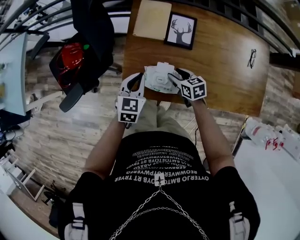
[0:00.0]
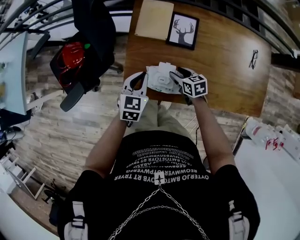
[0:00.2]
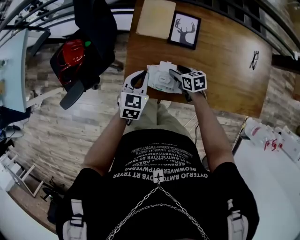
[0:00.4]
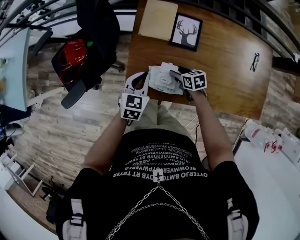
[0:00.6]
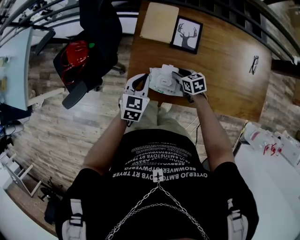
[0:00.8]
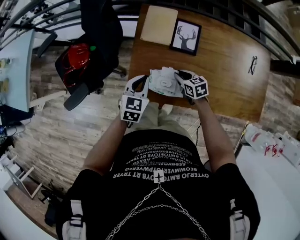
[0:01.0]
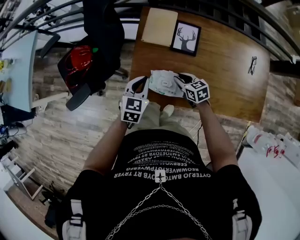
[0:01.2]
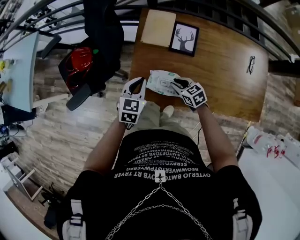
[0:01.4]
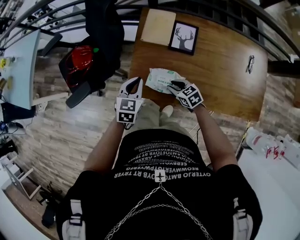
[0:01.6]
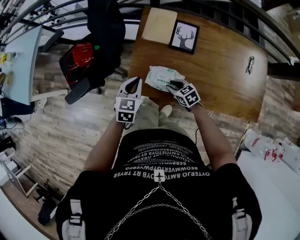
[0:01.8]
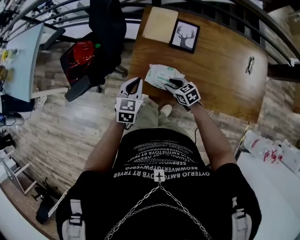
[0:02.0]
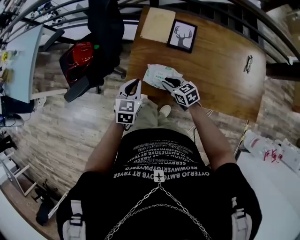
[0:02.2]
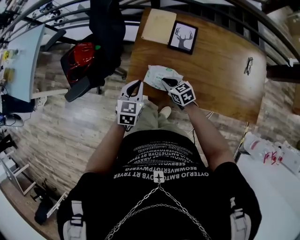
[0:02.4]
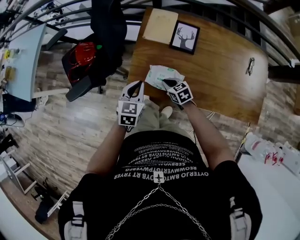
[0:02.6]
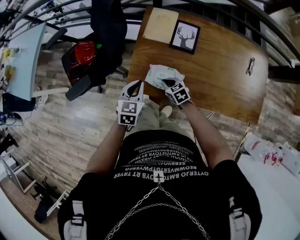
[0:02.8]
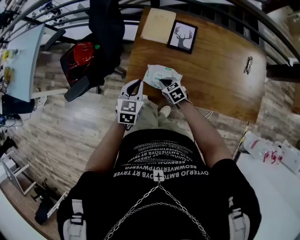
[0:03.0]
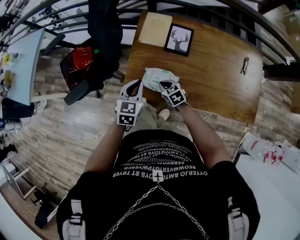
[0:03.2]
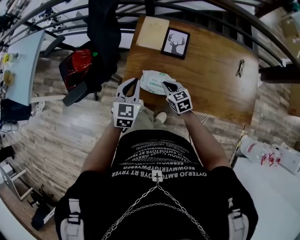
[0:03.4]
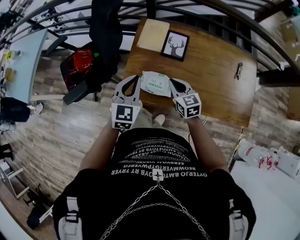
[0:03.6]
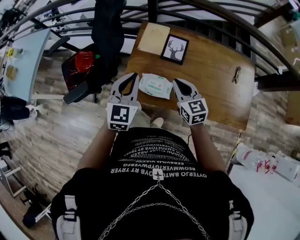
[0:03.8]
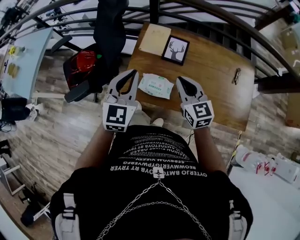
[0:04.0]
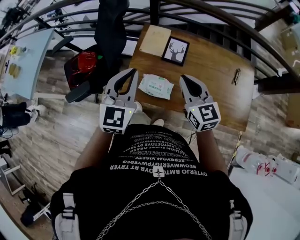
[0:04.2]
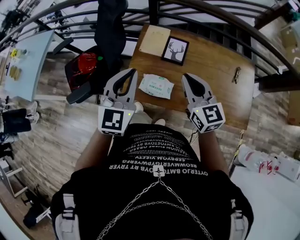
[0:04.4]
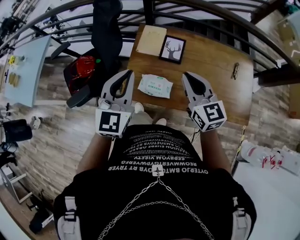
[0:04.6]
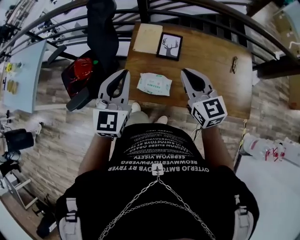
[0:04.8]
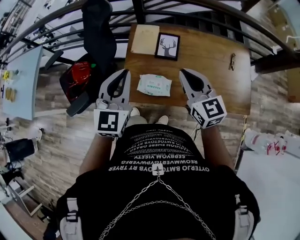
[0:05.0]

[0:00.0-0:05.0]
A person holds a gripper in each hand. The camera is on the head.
0:00.0 to 0:01.6: The right gripper moves some 5 cm, rotates some 20 degrees, and closes its fingers.
0:01.6 to 0:03.4: The grippers both shift upward by roughly 5 cm. The right gripper closes up.
0:03.4 to 0:05.0: The left gripper heads upward, covering about 20 cm. The right gripper moves upward, approximately 30 cm, and rotates about 30 degrees.

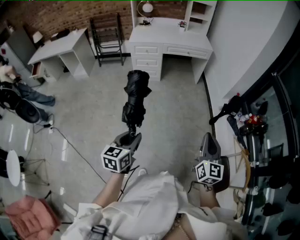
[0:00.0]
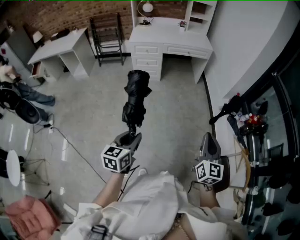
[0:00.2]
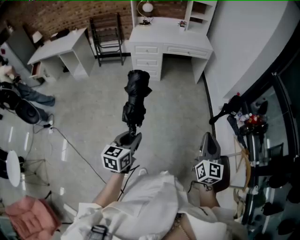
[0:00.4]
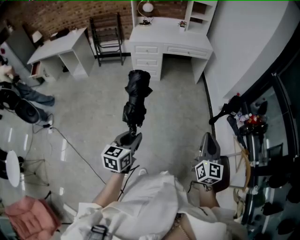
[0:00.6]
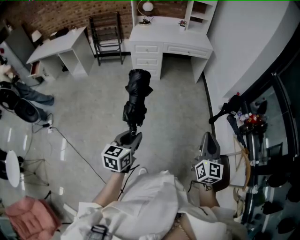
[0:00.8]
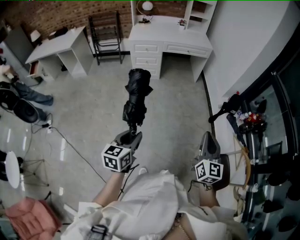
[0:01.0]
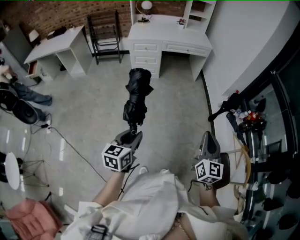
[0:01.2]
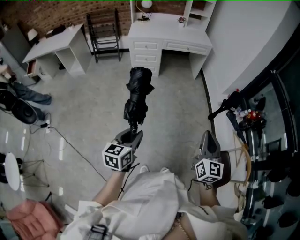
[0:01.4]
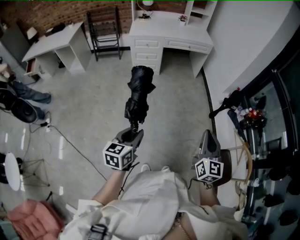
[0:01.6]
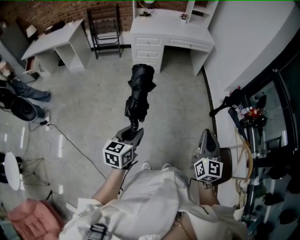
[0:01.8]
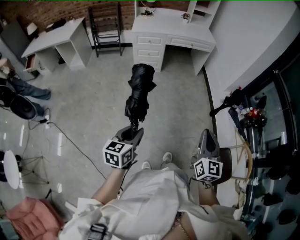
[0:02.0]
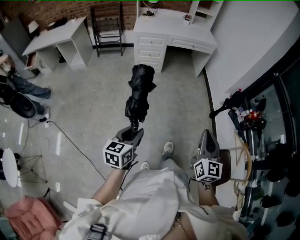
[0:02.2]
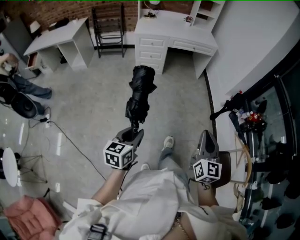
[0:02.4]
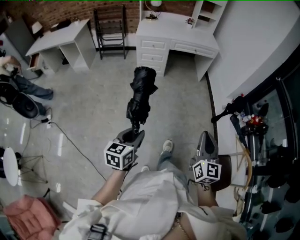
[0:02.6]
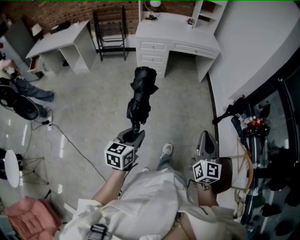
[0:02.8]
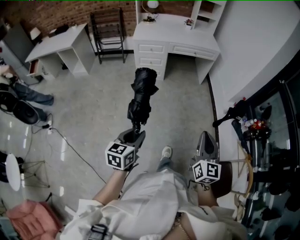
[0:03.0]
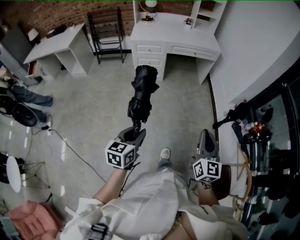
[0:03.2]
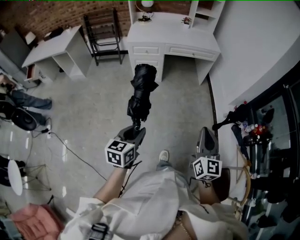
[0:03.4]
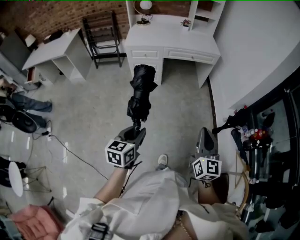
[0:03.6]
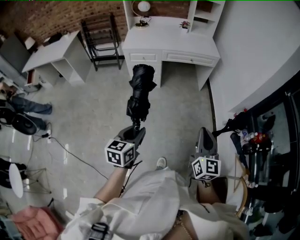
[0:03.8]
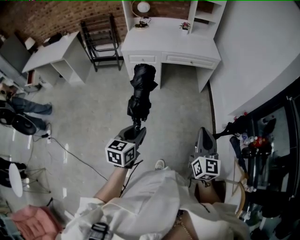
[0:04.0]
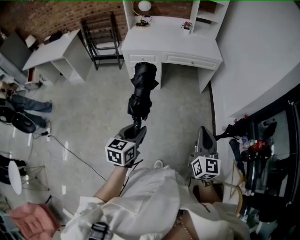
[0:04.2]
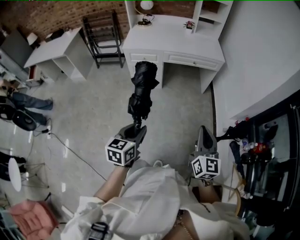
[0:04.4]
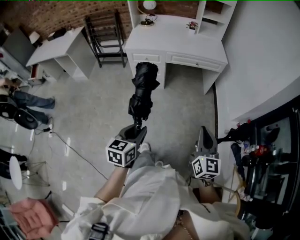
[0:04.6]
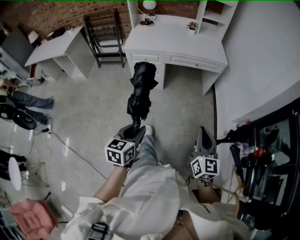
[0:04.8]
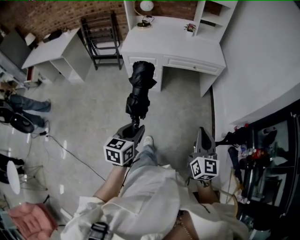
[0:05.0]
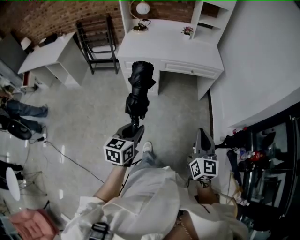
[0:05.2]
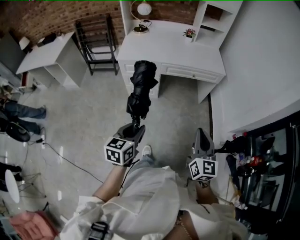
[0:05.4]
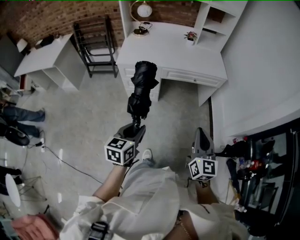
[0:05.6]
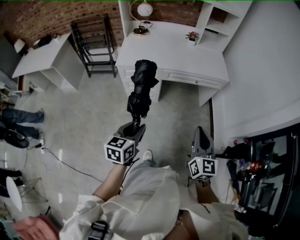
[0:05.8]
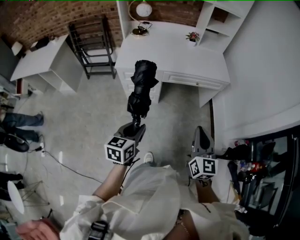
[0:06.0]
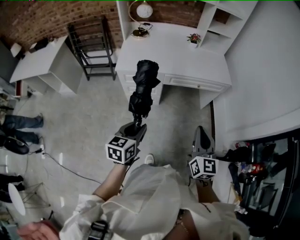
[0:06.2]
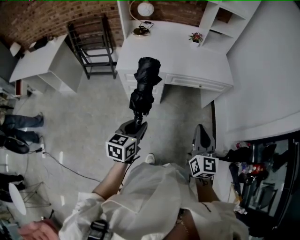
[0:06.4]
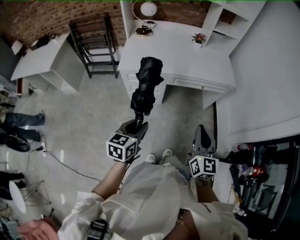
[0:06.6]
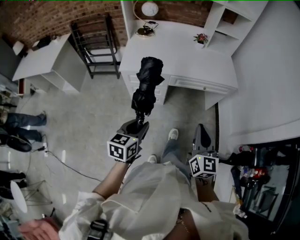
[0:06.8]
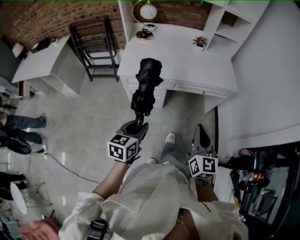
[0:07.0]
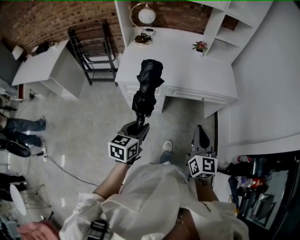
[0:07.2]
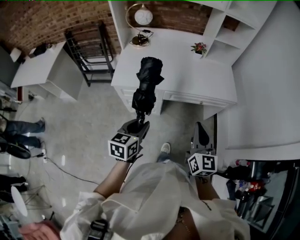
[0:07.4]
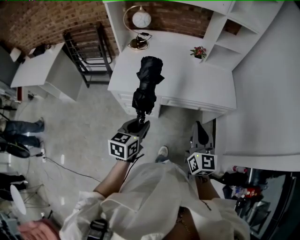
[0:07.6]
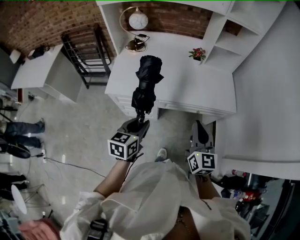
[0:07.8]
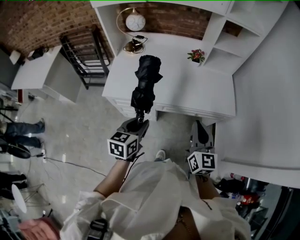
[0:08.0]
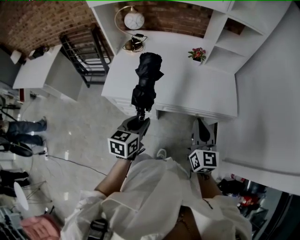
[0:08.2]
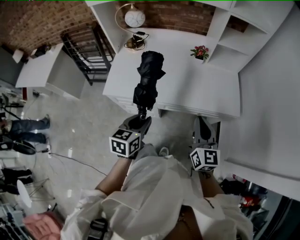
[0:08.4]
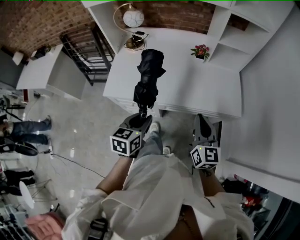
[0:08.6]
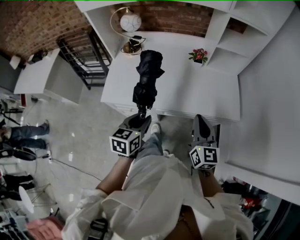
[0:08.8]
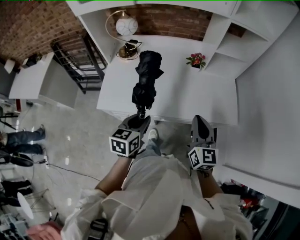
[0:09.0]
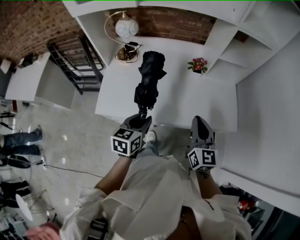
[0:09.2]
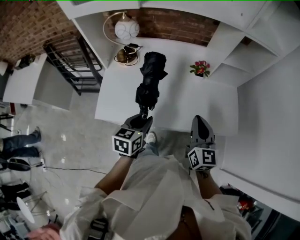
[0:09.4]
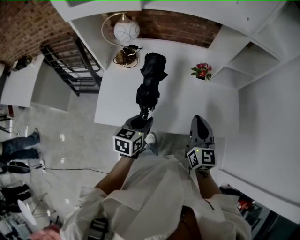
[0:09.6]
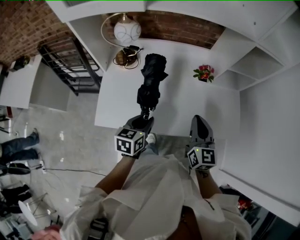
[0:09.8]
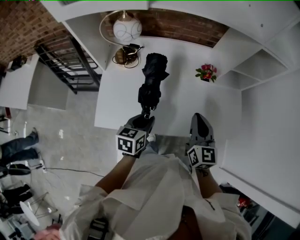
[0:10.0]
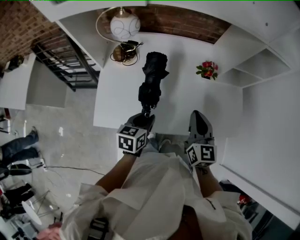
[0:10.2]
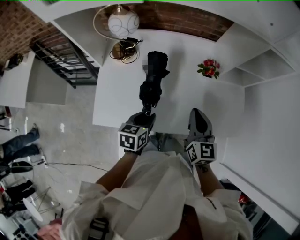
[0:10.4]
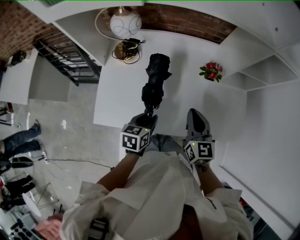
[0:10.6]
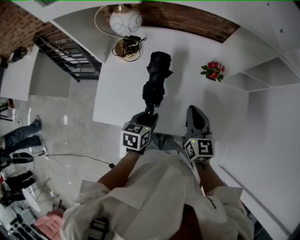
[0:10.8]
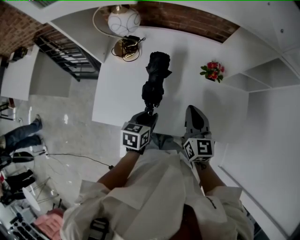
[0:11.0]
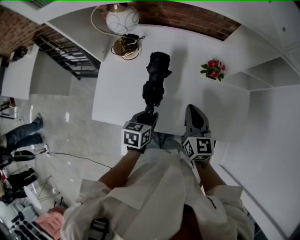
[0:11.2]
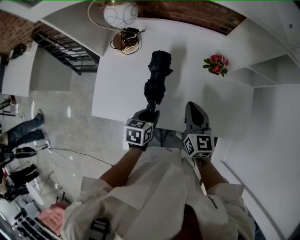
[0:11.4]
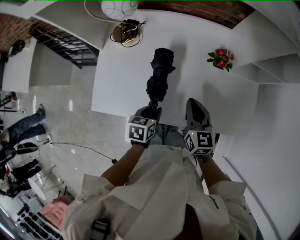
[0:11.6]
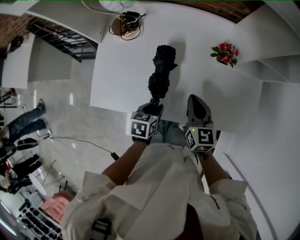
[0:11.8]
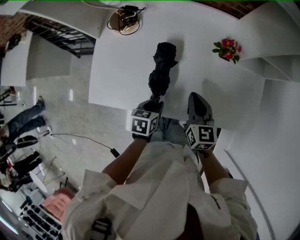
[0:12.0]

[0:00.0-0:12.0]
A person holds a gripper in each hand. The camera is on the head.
0:00.0 to 0:01.6: The two grippers go roughly 5 cm to the left.
0:01.6 to 0:03.0: The two grippers go some 10 cm forward.
0:03.0 to 0:04.4: The grippers both shift forward by about 30 cm.
0:04.4 to 0:06.0: The right gripper moves forward and to the left, roughly 30 cm. The left gripper is displaced forward by some 30 cm.
0:06.0 to 0:07.6: The two grippers go roughly 30 cm forward.
0:07.6 to 0:09.0: The grippers both shift forward by roughly 20 cm.
0:09.0 to 0:10.4: The left gripper heads forward, downward and to the left, covering approximately 20 cm. Meanwhile the right gripper shifts roughly 20 cm forward and to the left.
0:10.4 to 0:12.0: The two grippers go approximately 15 cm downward.

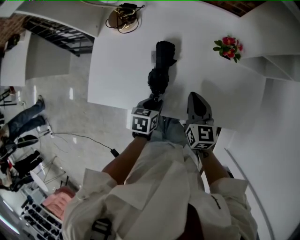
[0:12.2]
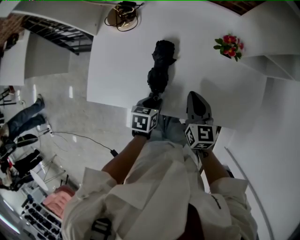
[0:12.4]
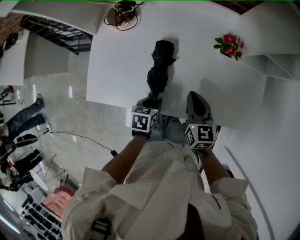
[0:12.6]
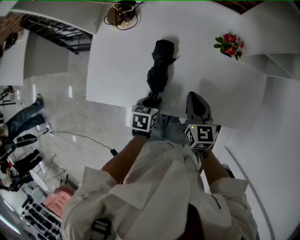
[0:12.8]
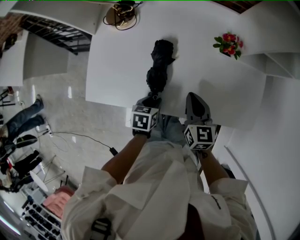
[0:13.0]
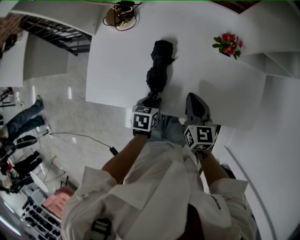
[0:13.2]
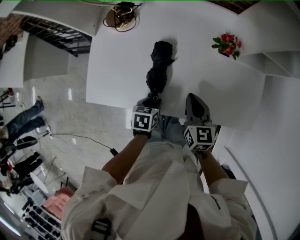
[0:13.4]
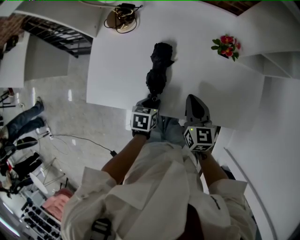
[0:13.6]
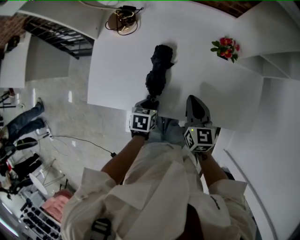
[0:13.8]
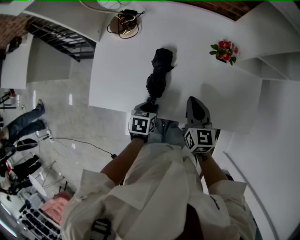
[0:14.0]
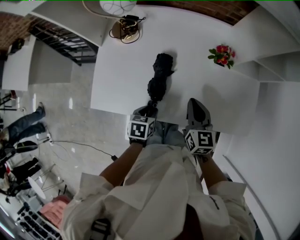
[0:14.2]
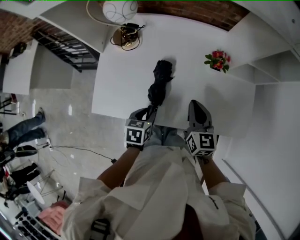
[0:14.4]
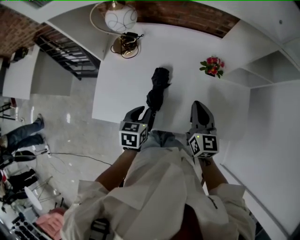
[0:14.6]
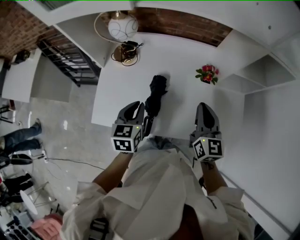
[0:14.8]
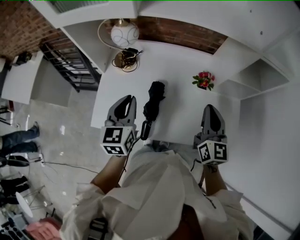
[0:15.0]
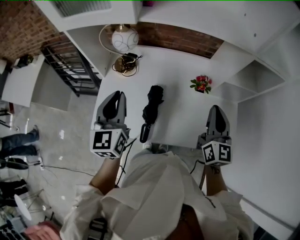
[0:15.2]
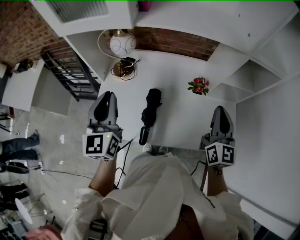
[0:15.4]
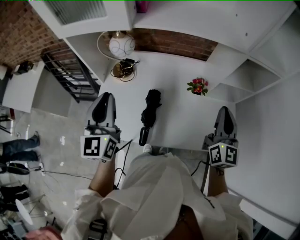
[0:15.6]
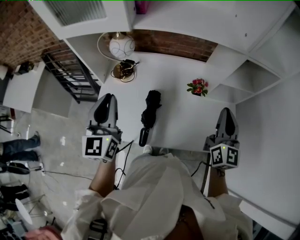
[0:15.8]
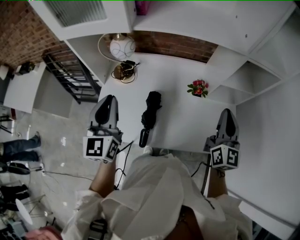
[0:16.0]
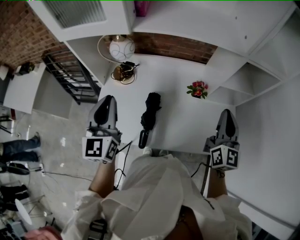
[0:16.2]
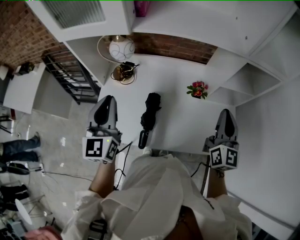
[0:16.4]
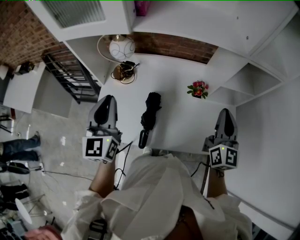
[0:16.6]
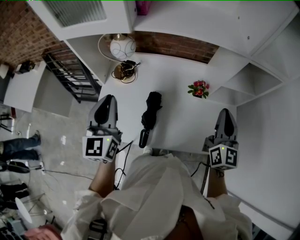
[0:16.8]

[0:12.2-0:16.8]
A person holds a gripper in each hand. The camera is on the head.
0:12.2 to 0:13.8: The grippers stay close to where they were, moving slightly.
0:13.8 to 0:15.2: The right gripper moves upward, about 25 cm, and turns by about 30 degrees. Meanwhile the left gripper travels upward by roughly 40 cm, and tilts its fingers roughly 50 degrees upward.
0:15.2 to 0:16.8: The right gripper changes place by some 5 cm.

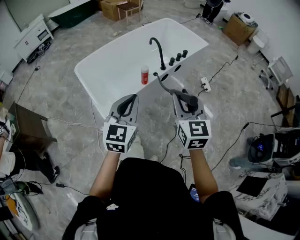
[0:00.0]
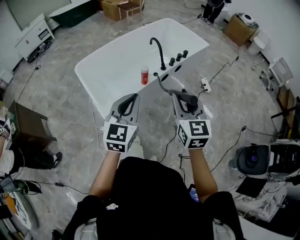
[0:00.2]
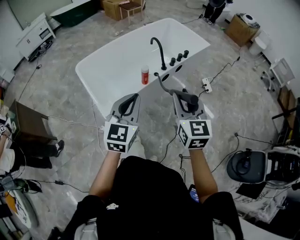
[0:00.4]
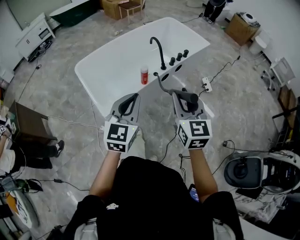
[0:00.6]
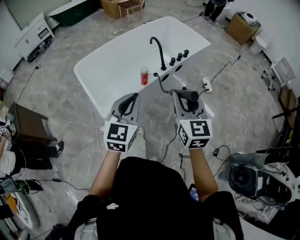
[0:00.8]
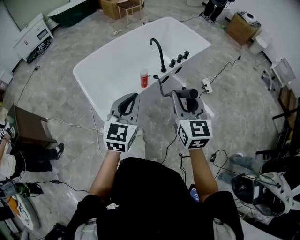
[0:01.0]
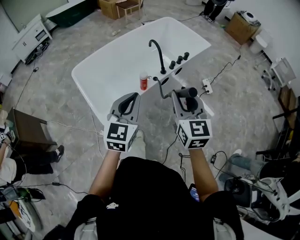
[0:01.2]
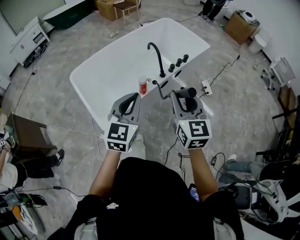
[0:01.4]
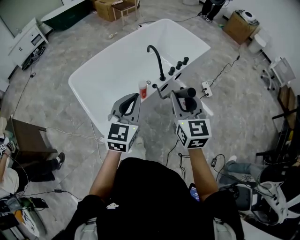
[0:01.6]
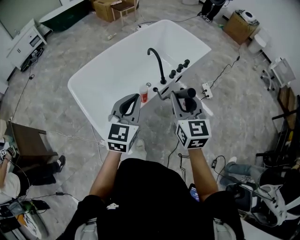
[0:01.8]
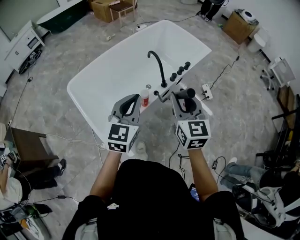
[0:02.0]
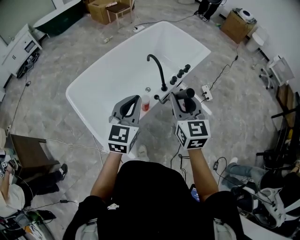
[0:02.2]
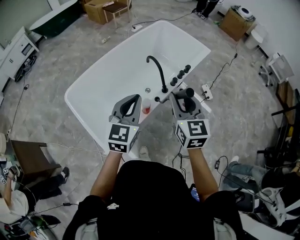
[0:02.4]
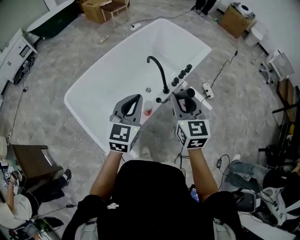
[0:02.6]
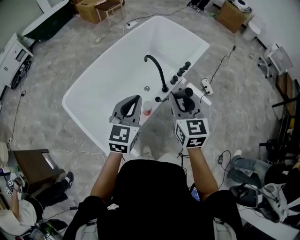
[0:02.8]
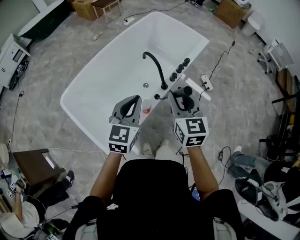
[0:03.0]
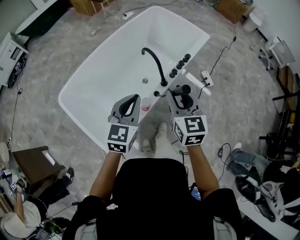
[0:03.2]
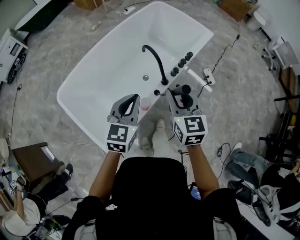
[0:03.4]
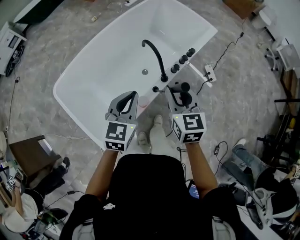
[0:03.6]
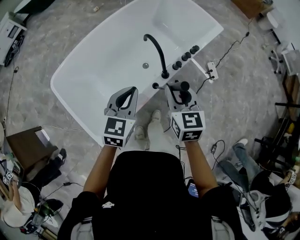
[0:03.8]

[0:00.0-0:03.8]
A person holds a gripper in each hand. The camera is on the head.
0:00.0 to 0:01.2: Both grippers move forward, about 10 cm.
0:01.2 to 0:02.6: Both grippers travel together forward, some 25 cm.
0:02.6 to 0:03.8: Both grippers travel together downward and forward, roughly 15 cm.
